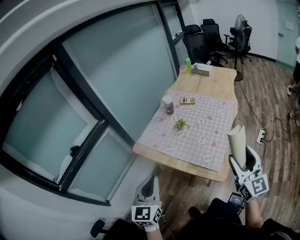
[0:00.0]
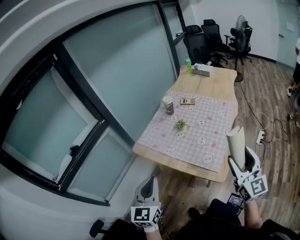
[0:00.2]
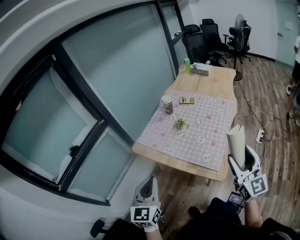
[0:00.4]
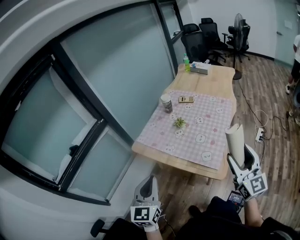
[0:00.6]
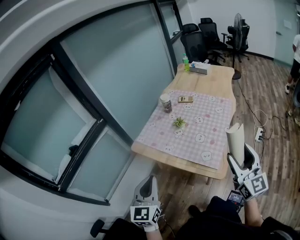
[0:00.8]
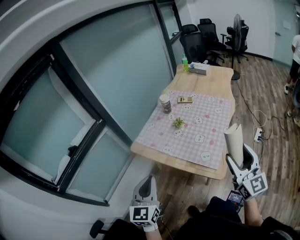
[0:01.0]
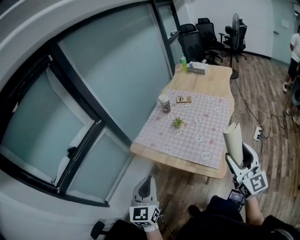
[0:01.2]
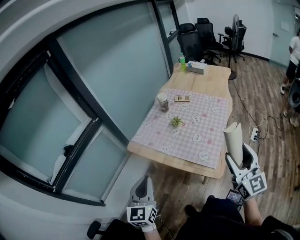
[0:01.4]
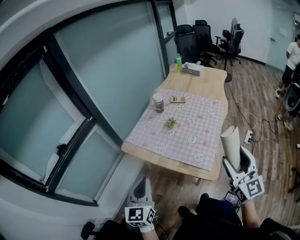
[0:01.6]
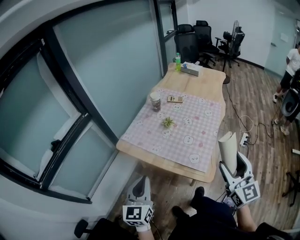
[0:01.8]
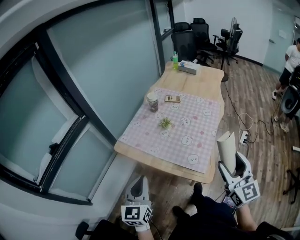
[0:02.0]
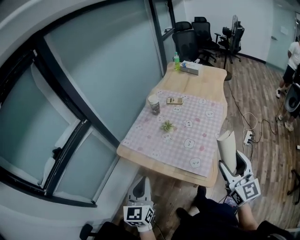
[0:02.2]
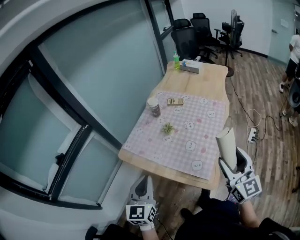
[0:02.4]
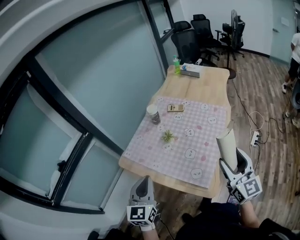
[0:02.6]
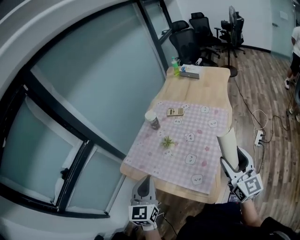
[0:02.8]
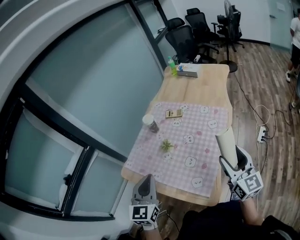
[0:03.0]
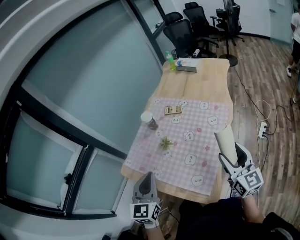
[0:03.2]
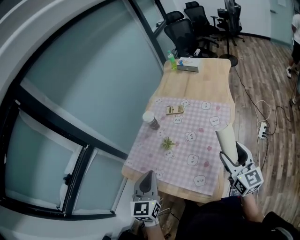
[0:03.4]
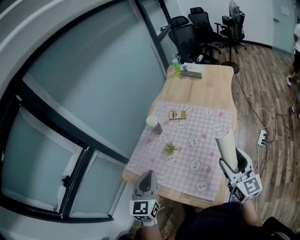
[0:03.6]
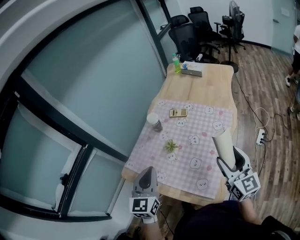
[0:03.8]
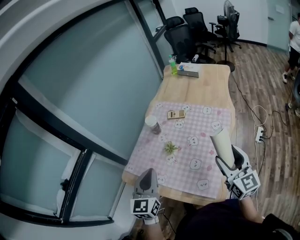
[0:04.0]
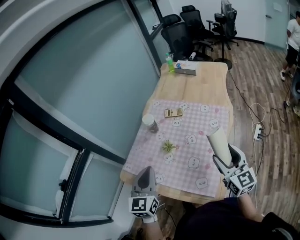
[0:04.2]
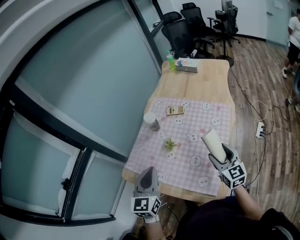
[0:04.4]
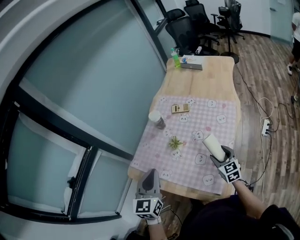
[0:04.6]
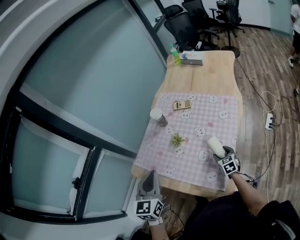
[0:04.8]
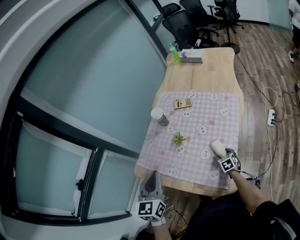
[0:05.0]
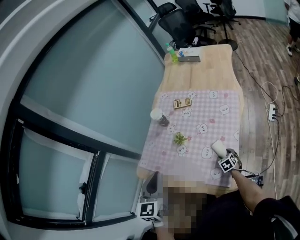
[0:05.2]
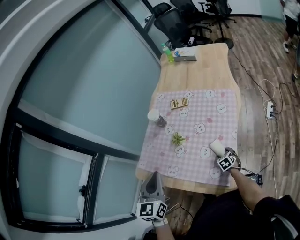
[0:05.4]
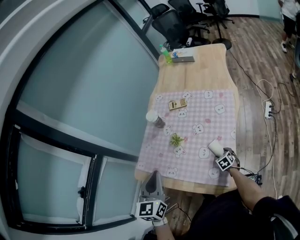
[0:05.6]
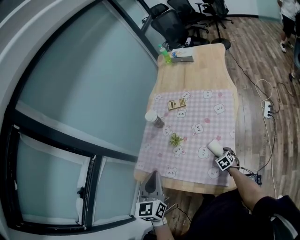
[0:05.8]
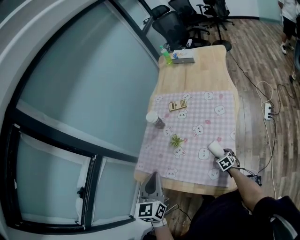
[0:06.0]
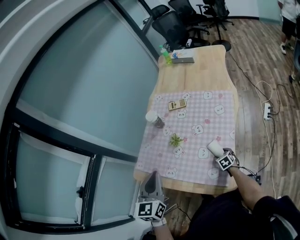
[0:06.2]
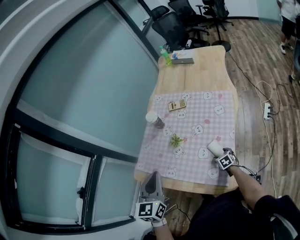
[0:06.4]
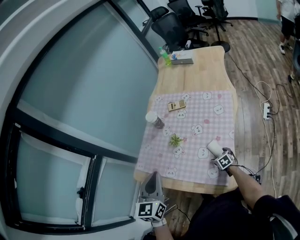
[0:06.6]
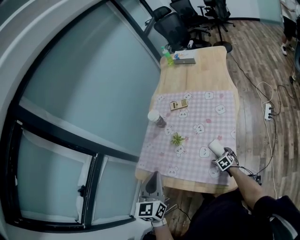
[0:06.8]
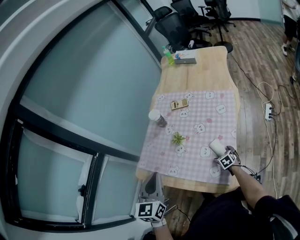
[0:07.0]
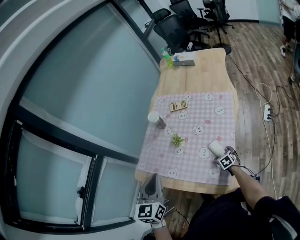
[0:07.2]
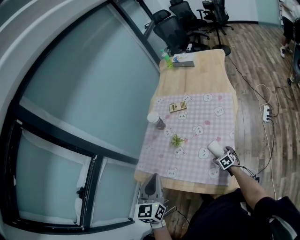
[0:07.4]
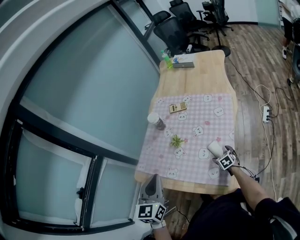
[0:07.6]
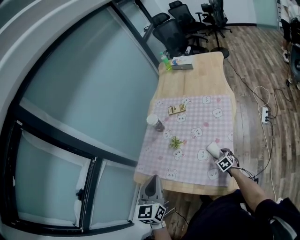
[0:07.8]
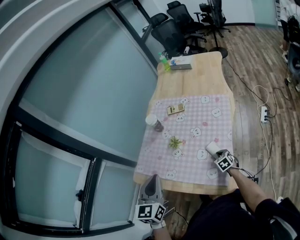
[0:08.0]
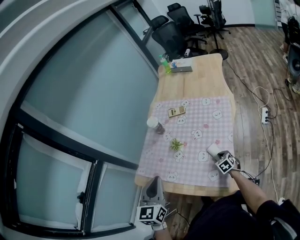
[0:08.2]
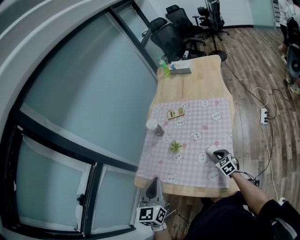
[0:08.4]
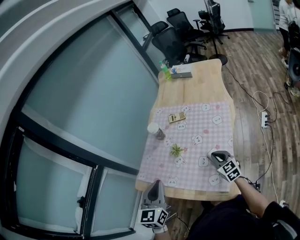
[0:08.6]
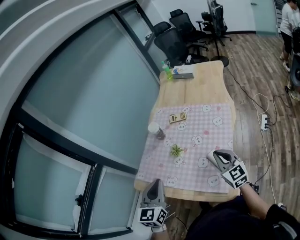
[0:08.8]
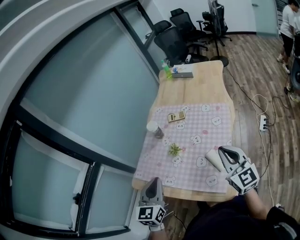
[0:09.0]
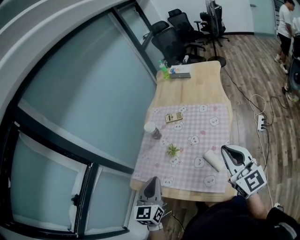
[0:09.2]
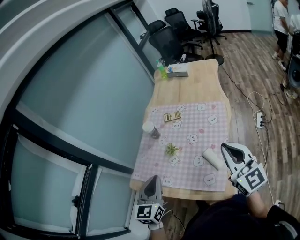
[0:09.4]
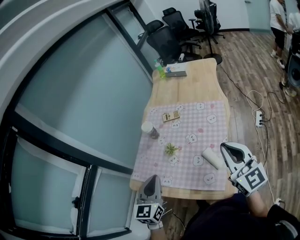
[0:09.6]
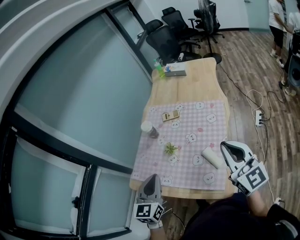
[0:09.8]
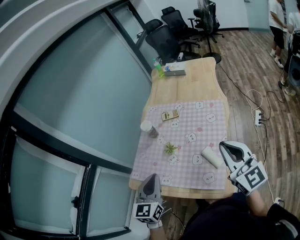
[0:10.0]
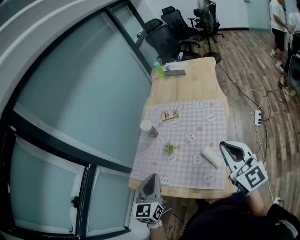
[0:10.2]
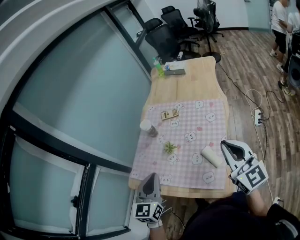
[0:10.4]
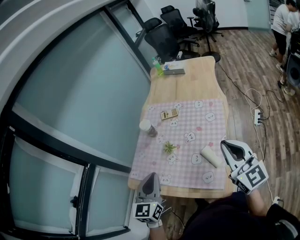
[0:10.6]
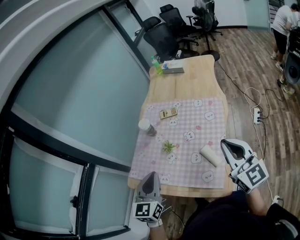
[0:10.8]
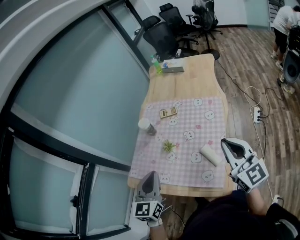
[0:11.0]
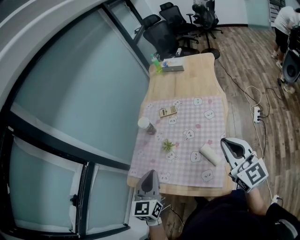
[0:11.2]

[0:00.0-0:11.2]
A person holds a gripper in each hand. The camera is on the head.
0:00.0 to 0:01.6: The grippers make only small movements.
0:01.6 to 0:03.2: The two grippers go about 25 cm forward and to the right.
0:03.2 to 0:04.8: The left gripper shifts some 5 cm to the left. Meanwhile the right gripper heads downward, covering approximately 30 cm, and tips its fingers downward by some 40 degrees.
0:04.8 to 0:06.4: The right gripper travels downward by roughly 10 cm.
0:06.4 to 0:08.0: The right gripper shifts approximately 5 cm upward, and closes its fingers.
0:08.0 to 0:09.6: The right gripper shifts some 40 cm upward, and tips its fingers upward by roughly 50 degrees.
0:09.6 to 0:11.2: The grippers stay close to where they were, moving slightly.

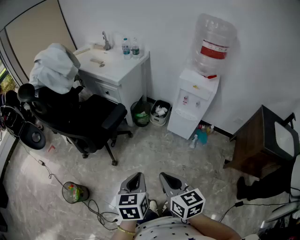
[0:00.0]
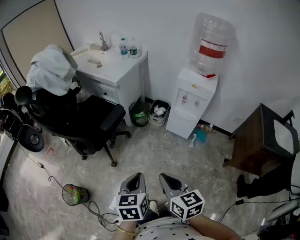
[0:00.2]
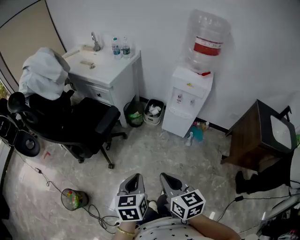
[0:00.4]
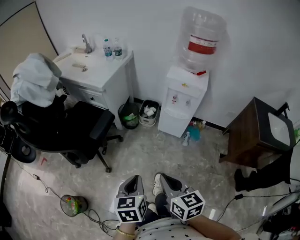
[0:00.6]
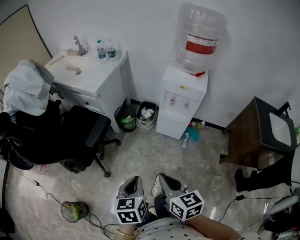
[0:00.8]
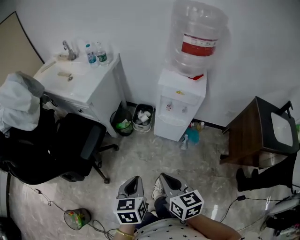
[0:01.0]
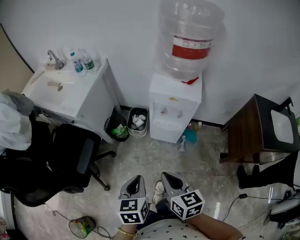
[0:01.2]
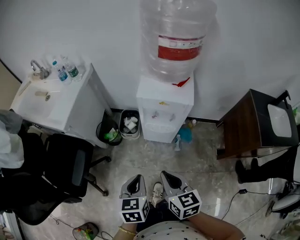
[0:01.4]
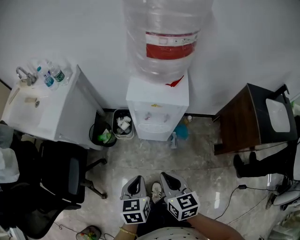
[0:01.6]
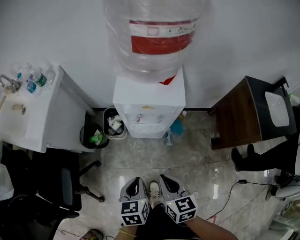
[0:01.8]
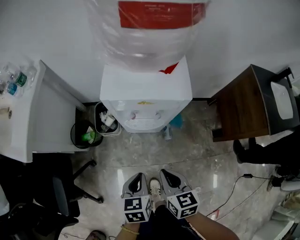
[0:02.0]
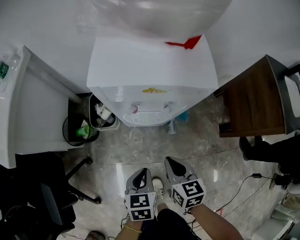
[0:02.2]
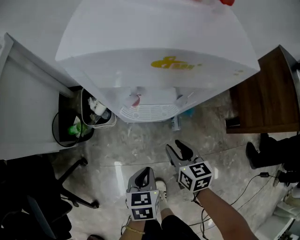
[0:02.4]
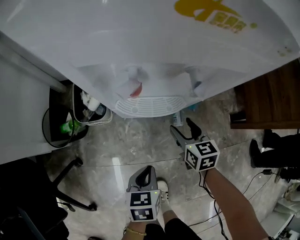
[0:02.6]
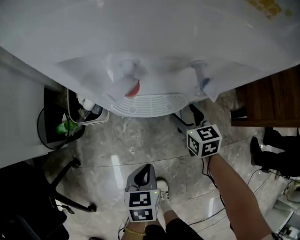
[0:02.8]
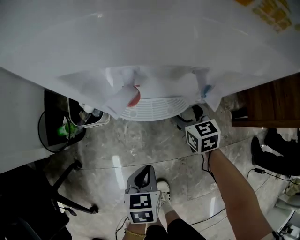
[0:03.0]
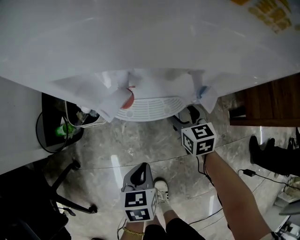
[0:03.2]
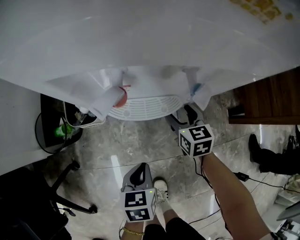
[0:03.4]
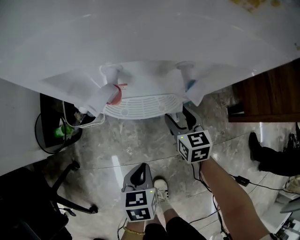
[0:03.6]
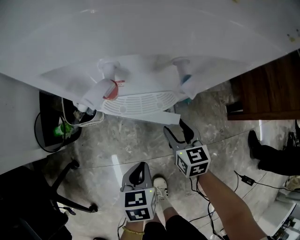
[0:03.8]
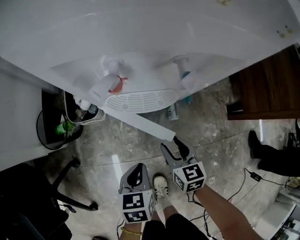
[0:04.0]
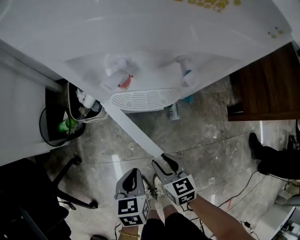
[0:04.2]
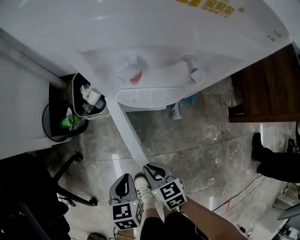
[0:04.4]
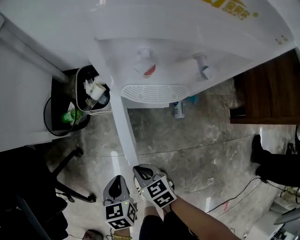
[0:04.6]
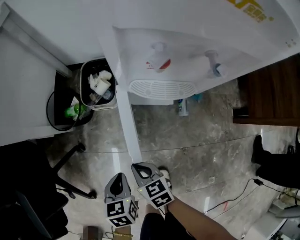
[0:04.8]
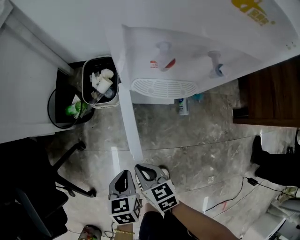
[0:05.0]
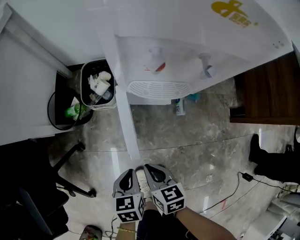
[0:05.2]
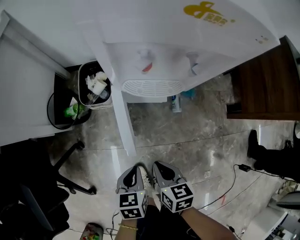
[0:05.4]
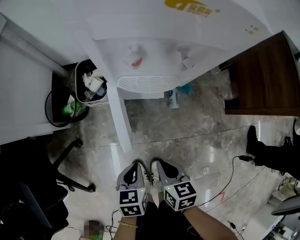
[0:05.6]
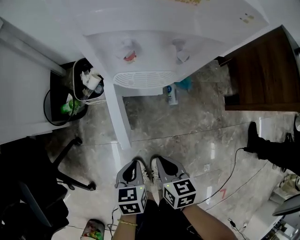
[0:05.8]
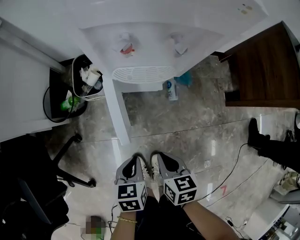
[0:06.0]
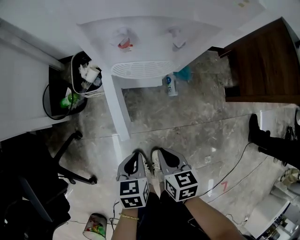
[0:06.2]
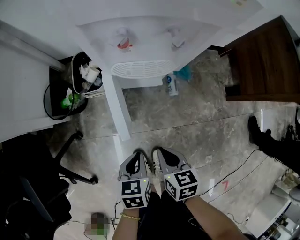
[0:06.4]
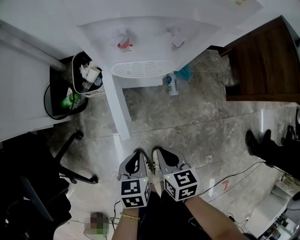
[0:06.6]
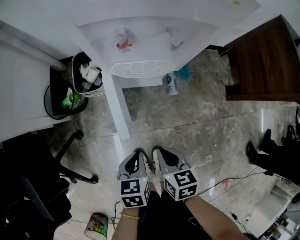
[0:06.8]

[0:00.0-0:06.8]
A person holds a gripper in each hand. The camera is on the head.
0:00.0 to 0:01.4: The grippers both shift forward and to the right by about 30 cm. The right gripper changes its angle by roughly 20 degrees.
0:01.4 to 0:02.8: Both grippers travel together downward, roughly 50 cm. The left gripper swivels roughly 30 degrees. Meanwhile the right gripper swivels approximately 20 degrees, and opens up.
0:02.8 to 0:04.0: The right gripper is displaced backward by about 15 cm, and closes up.
0:04.0 to 0:05.4: The right gripper changes place by about 15 cm, and closes.
0:05.4 to 0:06.8: There are only small adjustments of the grippers.

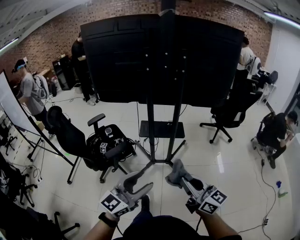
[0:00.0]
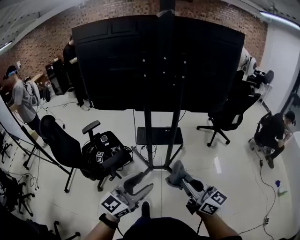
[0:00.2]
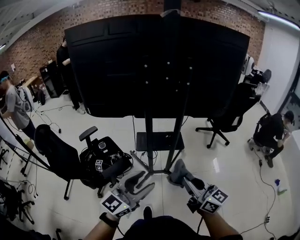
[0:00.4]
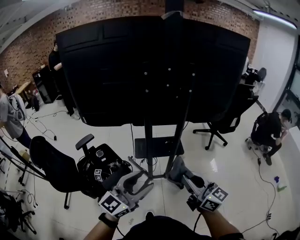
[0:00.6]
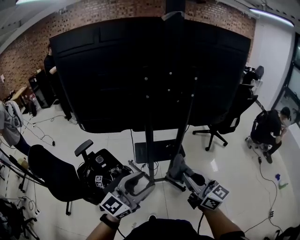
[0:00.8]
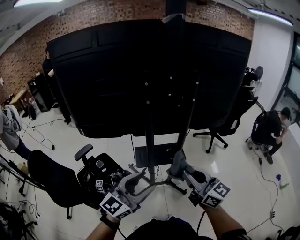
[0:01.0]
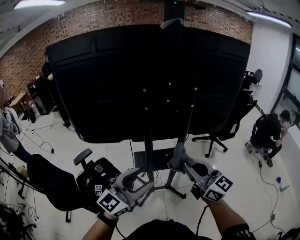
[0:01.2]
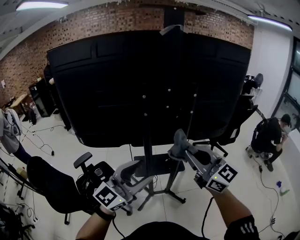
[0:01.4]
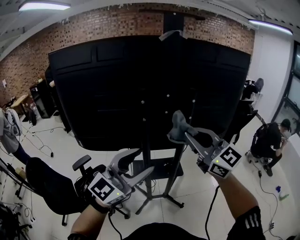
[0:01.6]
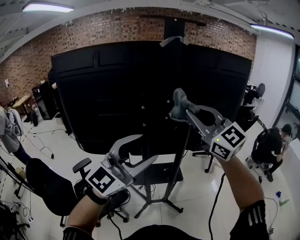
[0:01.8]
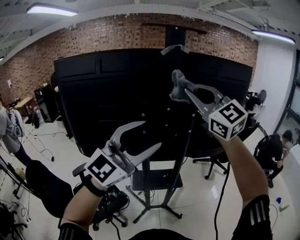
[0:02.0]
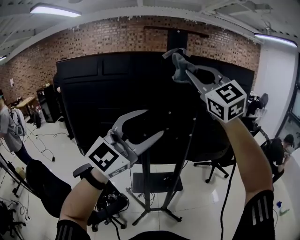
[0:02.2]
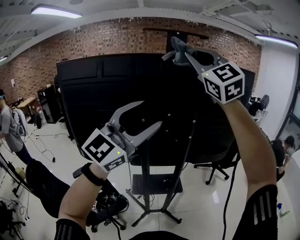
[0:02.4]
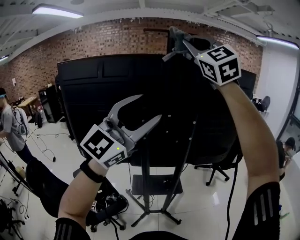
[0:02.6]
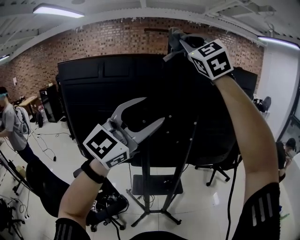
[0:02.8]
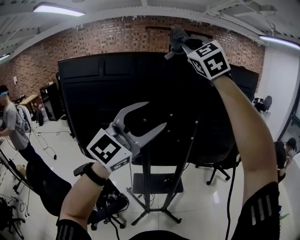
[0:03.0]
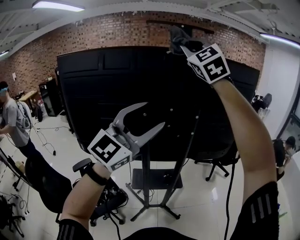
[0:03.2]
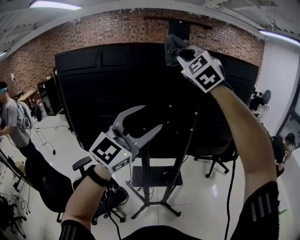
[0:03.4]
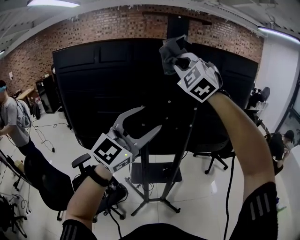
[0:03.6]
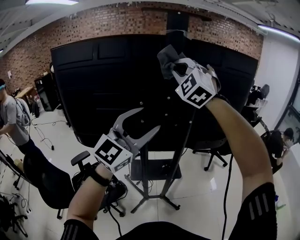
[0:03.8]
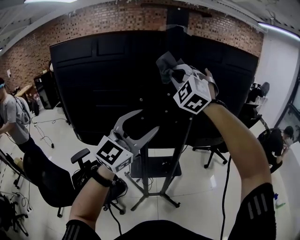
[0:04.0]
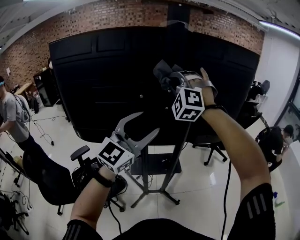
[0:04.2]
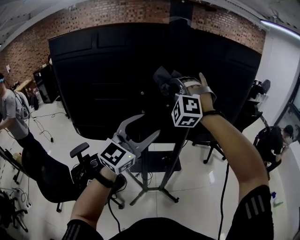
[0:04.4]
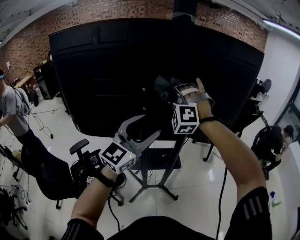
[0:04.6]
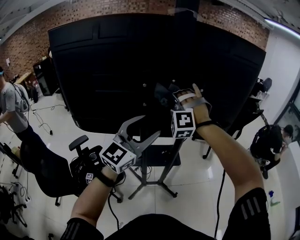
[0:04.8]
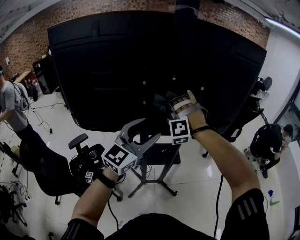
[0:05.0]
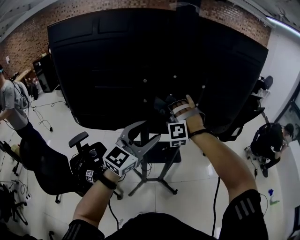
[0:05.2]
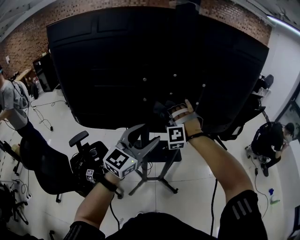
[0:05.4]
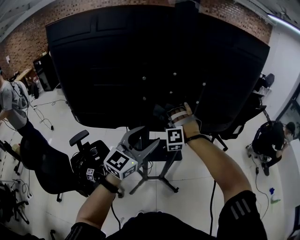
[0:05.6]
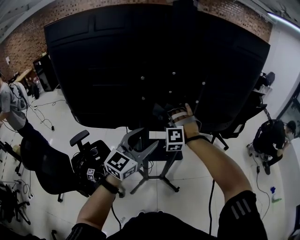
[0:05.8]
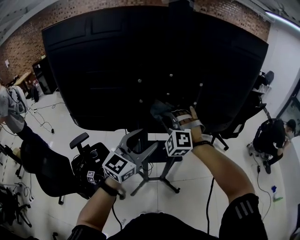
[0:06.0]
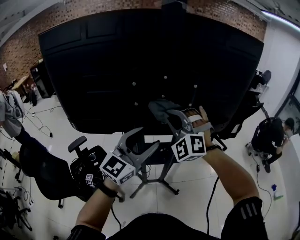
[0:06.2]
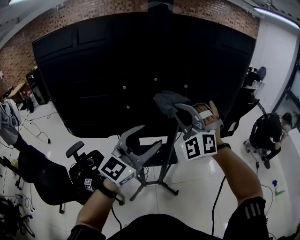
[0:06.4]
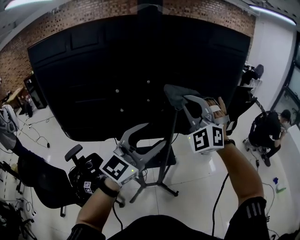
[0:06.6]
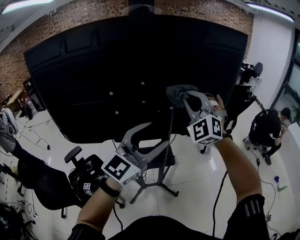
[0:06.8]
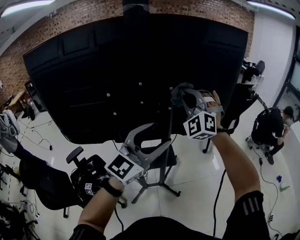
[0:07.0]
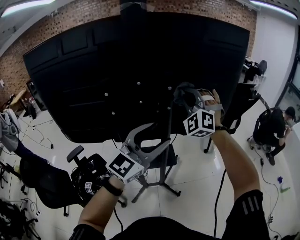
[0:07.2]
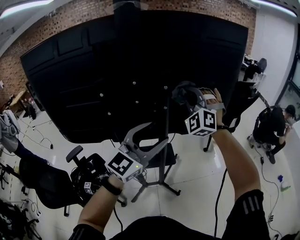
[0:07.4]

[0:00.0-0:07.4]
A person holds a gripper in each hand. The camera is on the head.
0:00.0 to 0:01.4: The right gripper is displaced forward and upward by some 35 cm, and swivels some 30 degrees. The left gripper moves forward, about 30 cm.
0:01.4 to 0:03.0: The right gripper moves upward and forward, roughly 50 cm, and rolls counterclockwise, seen from behind, by about 50 degrees; the left gripper shifts about 25 cm upward and forward, and turns by some 20 degrees.
0:03.0 to 0:04.4: The right gripper heads downward, covering about 30 cm, and swivels some 50 degrees. The left gripper heads downward, covering approximately 15 cm.
0:04.4 to 0:06.0: The right gripper shifts about 20 cm downward; the left gripper heads downward, covering approximately 10 cm.
0:06.0 to 0:07.4: The right gripper is displaced to the right, upward and forward by about 25 cm, and changes its angle by about 20 degrees. The left gripper moves to the right and upward, some 15 cm.
